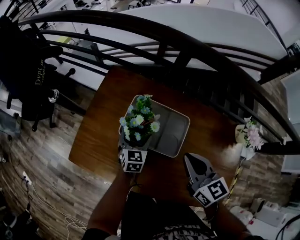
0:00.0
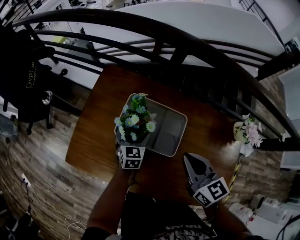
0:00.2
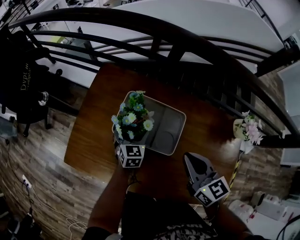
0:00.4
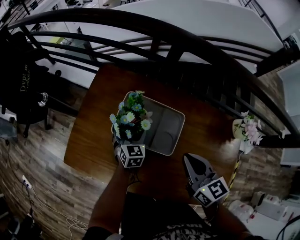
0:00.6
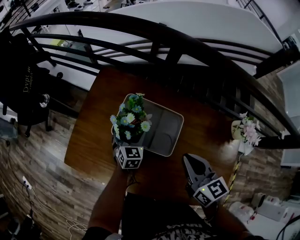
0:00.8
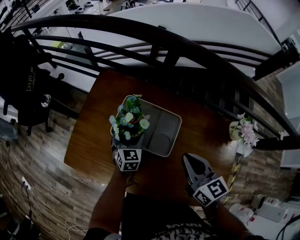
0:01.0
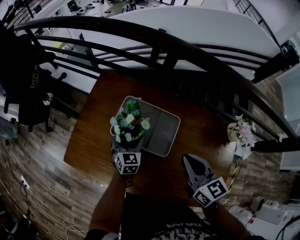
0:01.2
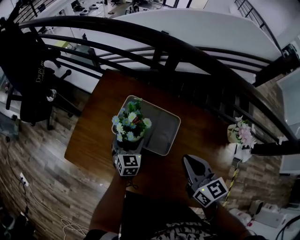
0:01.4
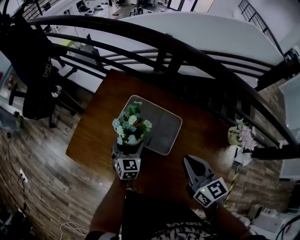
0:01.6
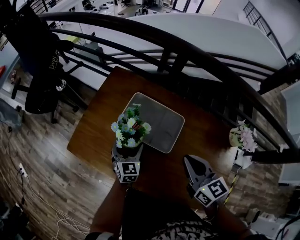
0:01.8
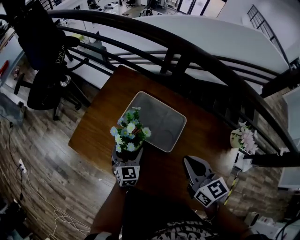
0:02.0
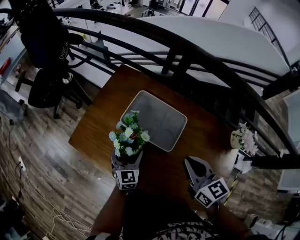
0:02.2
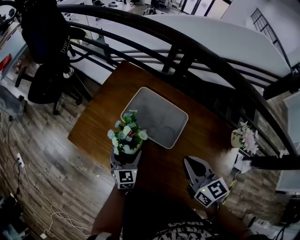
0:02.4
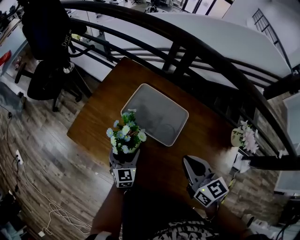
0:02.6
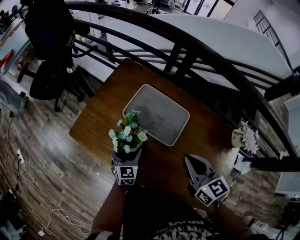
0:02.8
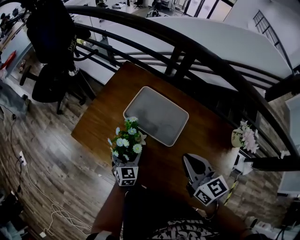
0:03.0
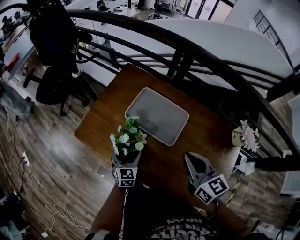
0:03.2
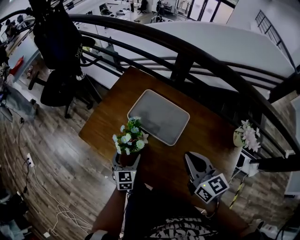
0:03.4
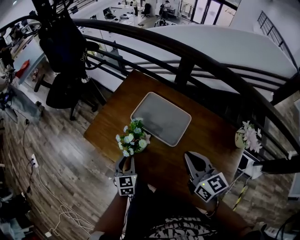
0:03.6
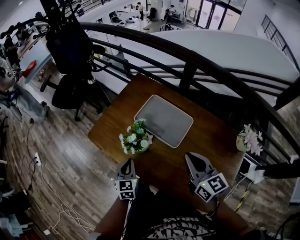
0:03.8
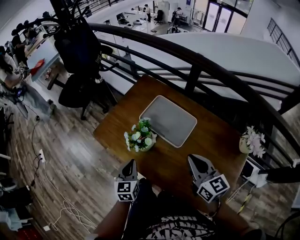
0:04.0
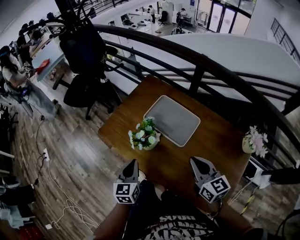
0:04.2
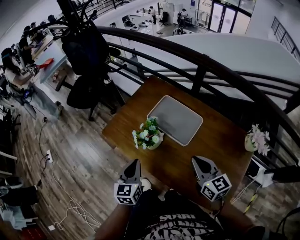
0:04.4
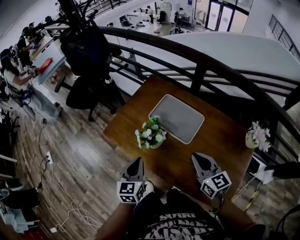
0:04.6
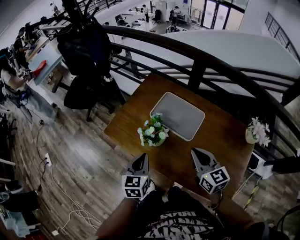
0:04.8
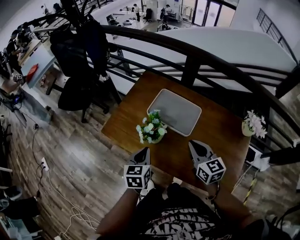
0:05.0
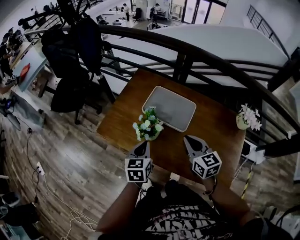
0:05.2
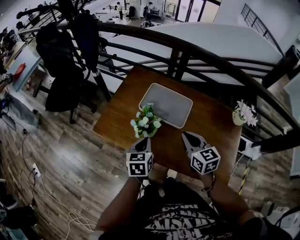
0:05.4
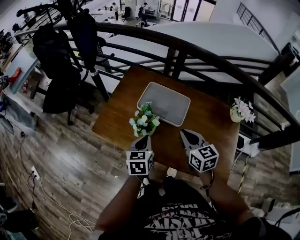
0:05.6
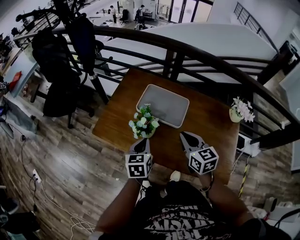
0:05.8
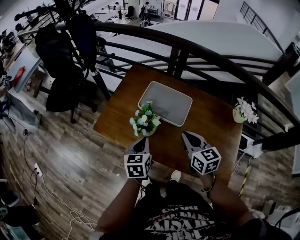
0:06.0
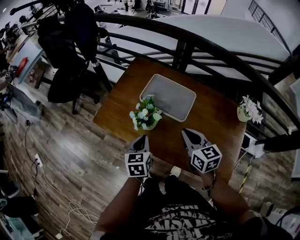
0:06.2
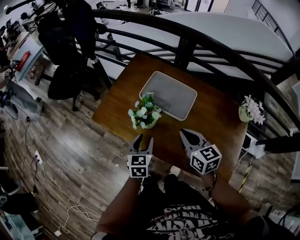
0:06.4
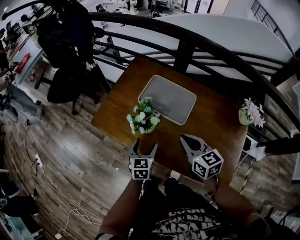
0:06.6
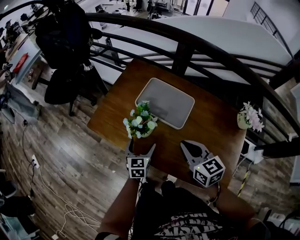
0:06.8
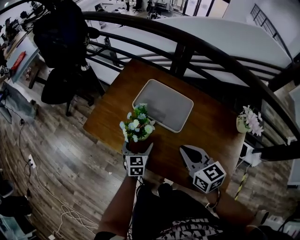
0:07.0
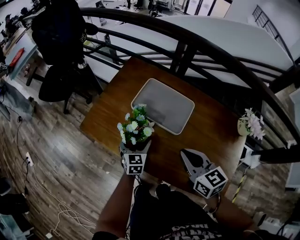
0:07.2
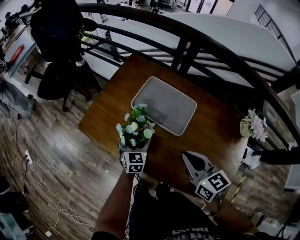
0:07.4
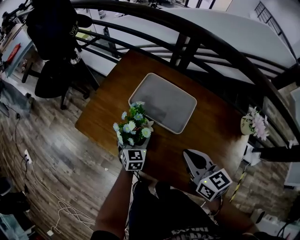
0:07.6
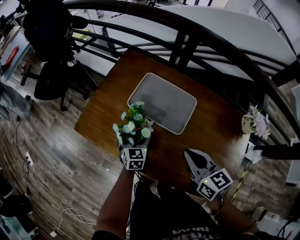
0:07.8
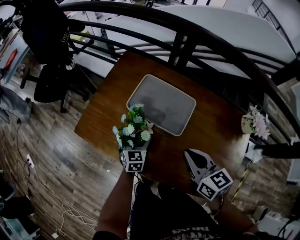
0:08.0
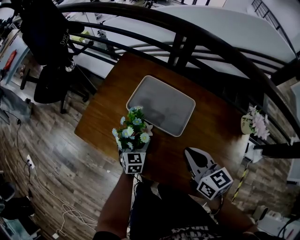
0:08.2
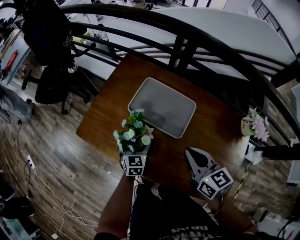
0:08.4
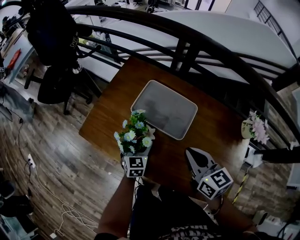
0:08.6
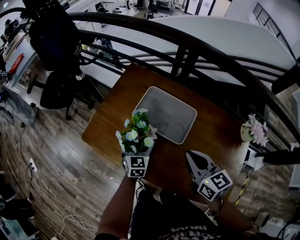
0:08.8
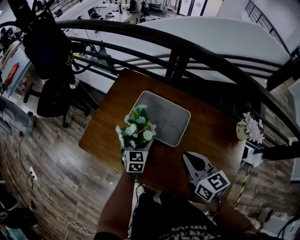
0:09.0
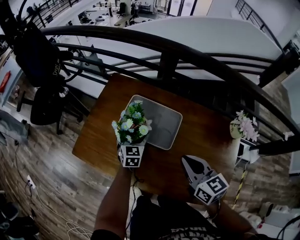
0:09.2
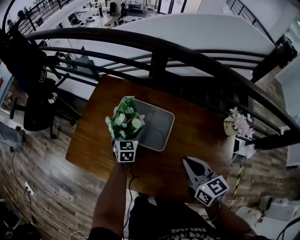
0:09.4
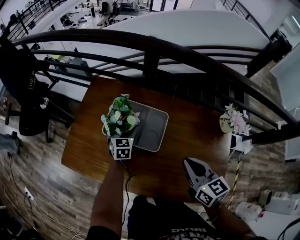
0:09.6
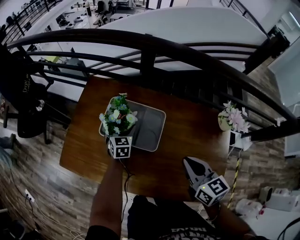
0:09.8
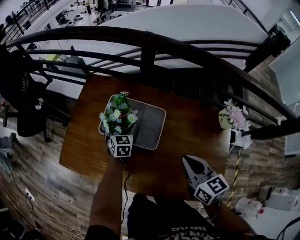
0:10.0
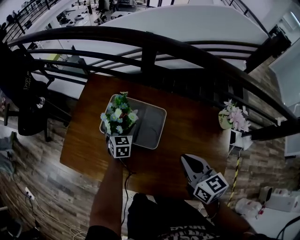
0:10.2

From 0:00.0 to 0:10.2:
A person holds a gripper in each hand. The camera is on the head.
From 0:00.0 to 0:01.4: The grippers move only a little.
From 0:01.4 to 0:03.0: The right gripper ends up some 5 cm from where it was, while the left gripper travels backward and to the left by some 15 cm.
From 0:03.0 to 0:04.4: The right gripper is displaced backward by roughly 5 cm. The left gripper is displaced upward and backward by approximately 20 cm, and closes up.
From 0:04.4 to 0:05.8: The right gripper travels to the left by roughly 5 cm. The left gripper rotates approximately 20 degrees.
From 0:05.8 to 0:07.2: The left gripper moves downward and forward, some 15 cm, and opens its fingers.
From 0:07.2 to 0:08.8: The left gripper ends up some 5 cm from where it was.
From 0:08.8 to 0:10.2: The left gripper heads forward and to the right, covering approximately 15 cm. The right gripper heads to the right, covering about 10 cm.

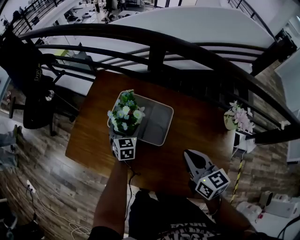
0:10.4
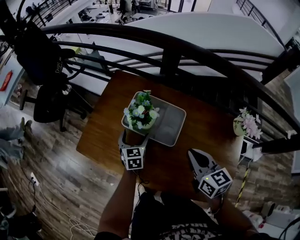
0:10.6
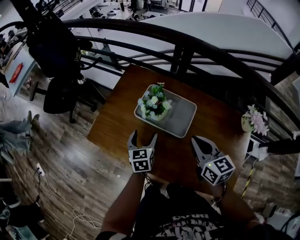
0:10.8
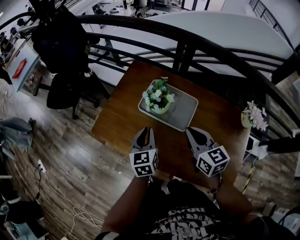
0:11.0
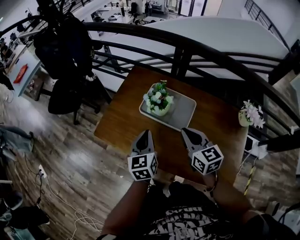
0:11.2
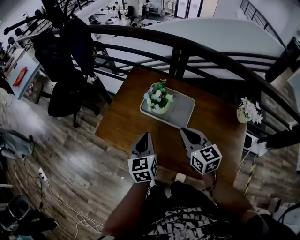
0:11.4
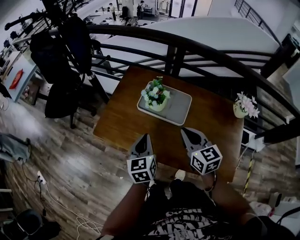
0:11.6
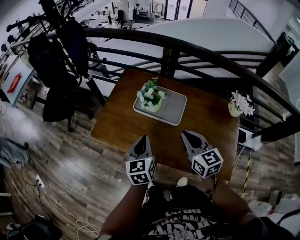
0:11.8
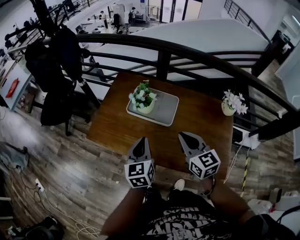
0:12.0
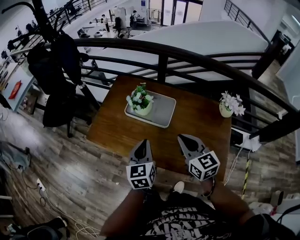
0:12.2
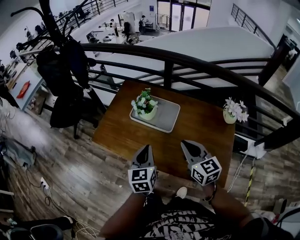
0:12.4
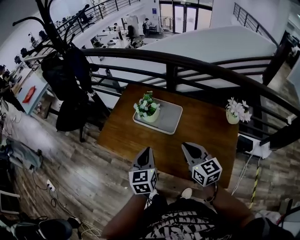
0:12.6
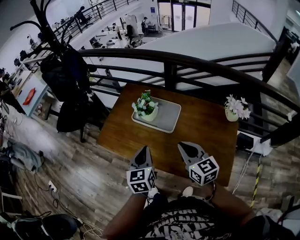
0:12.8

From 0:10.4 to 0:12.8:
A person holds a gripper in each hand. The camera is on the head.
From 0:10.4 to 0:11.6: The left gripper is displaced backward, upward and to the left by approximately 30 cm, turns by about 20 degrees, and closes its fingers. Meanwhile the right gripper moves to the left, approximately 10 cm.
From 0:11.6 to 0:12.8: The left gripper goes approximately 10 cm backward, to the right and upward, while the right gripper moves backward and to the right, roughly 10 cm.

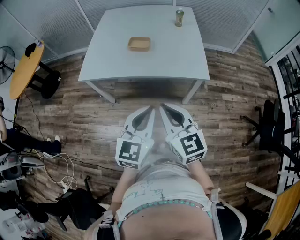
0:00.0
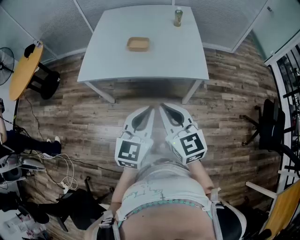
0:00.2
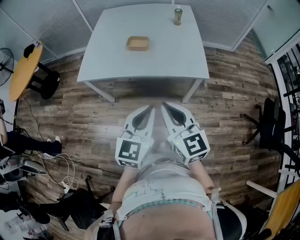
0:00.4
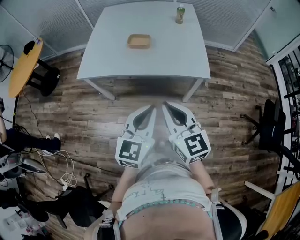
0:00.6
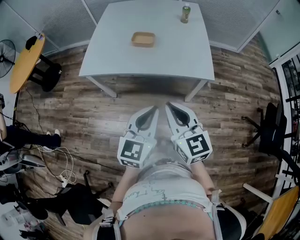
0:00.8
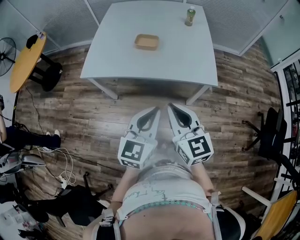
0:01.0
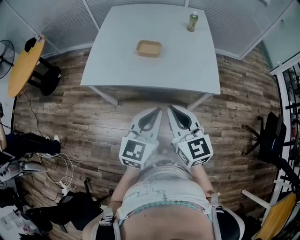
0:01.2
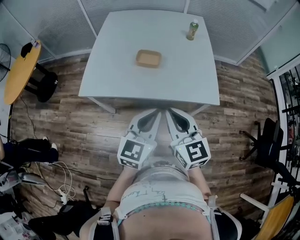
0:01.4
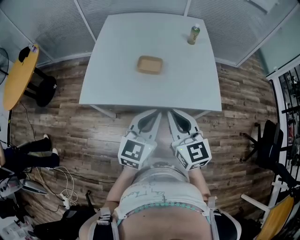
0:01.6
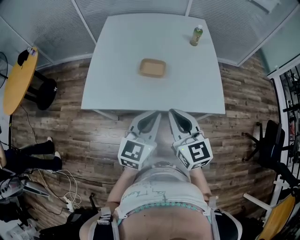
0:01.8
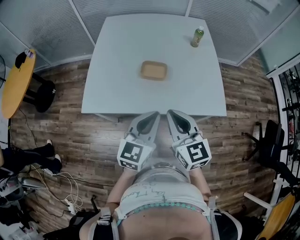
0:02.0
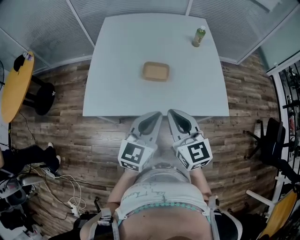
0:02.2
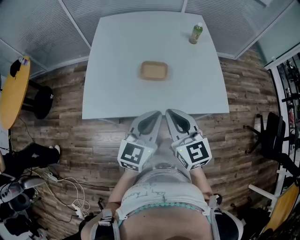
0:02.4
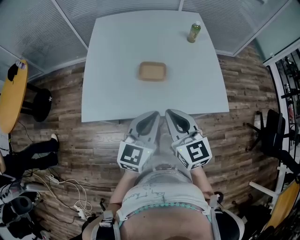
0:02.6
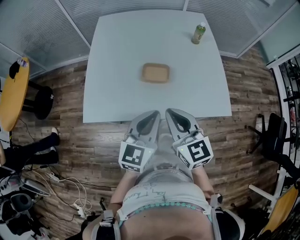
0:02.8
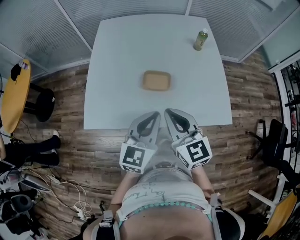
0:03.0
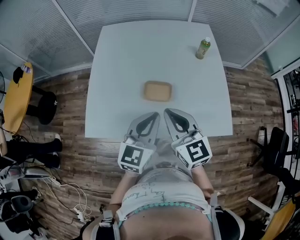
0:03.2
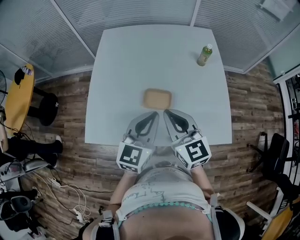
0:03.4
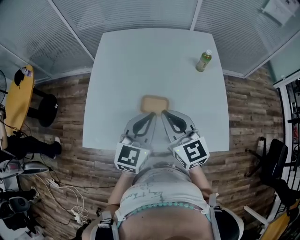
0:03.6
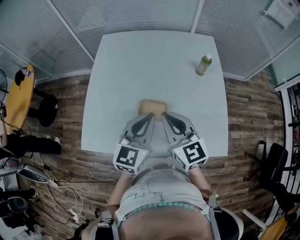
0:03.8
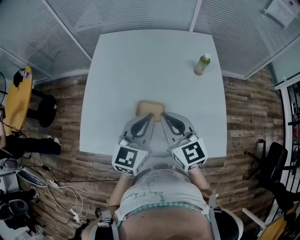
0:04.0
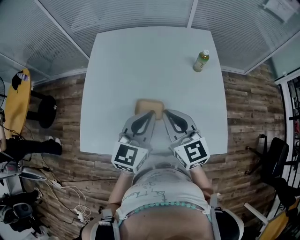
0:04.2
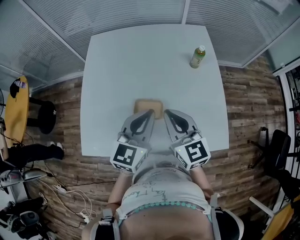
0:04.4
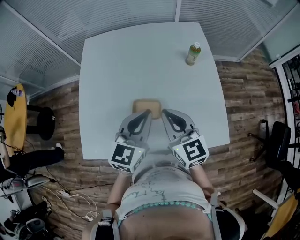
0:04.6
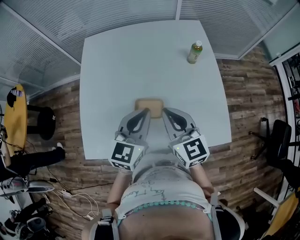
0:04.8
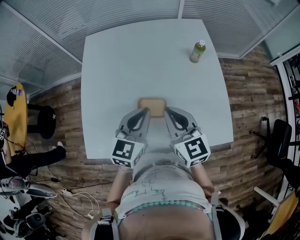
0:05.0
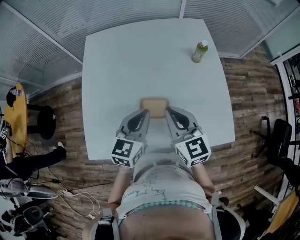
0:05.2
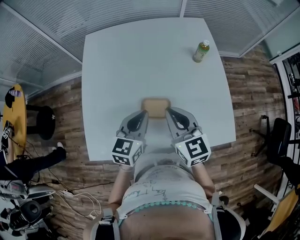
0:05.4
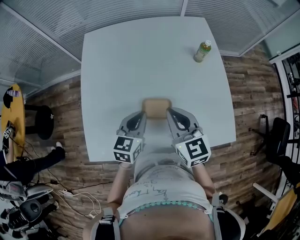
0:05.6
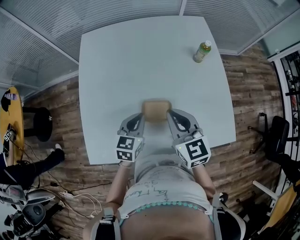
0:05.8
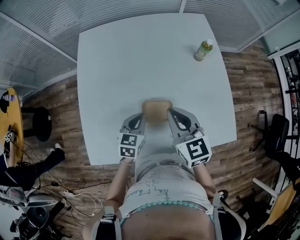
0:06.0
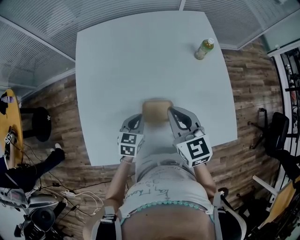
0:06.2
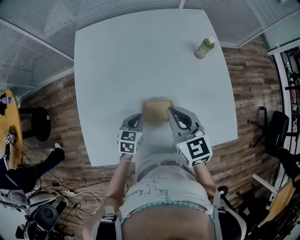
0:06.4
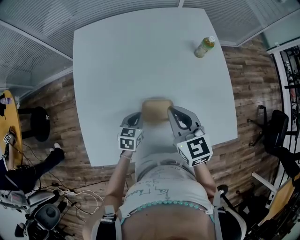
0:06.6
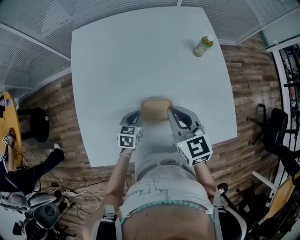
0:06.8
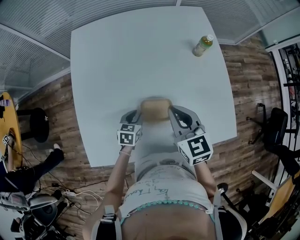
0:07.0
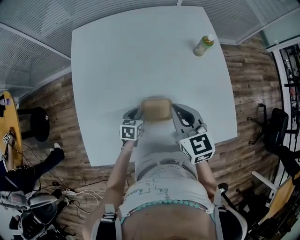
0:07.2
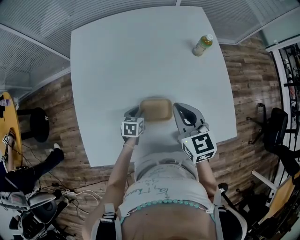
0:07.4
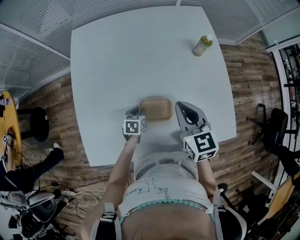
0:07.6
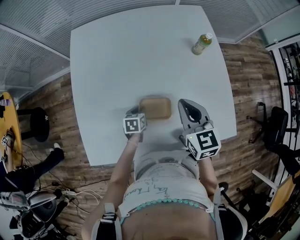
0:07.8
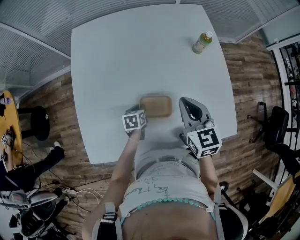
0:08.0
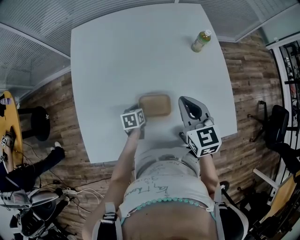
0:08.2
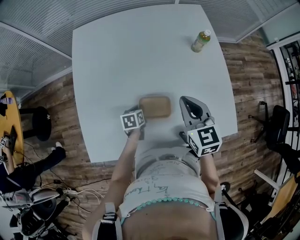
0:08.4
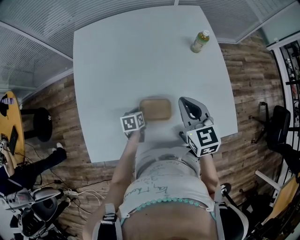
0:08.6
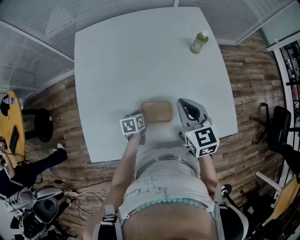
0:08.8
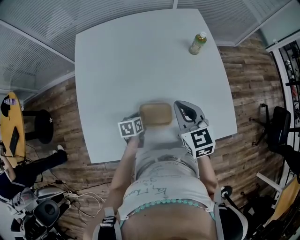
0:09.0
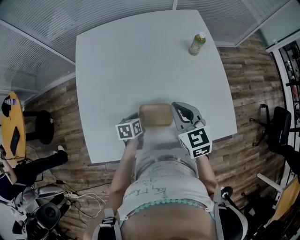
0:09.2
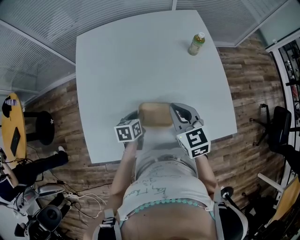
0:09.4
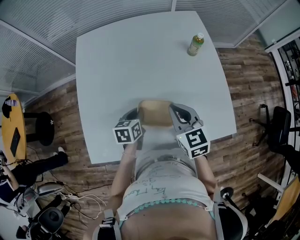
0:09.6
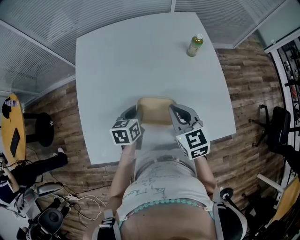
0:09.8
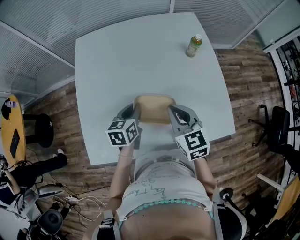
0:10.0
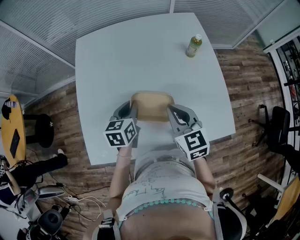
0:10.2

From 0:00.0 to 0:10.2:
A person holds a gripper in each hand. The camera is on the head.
From 0:00.0 to 0:01.4: Both grippers move forward, about 15 cm.
From 0:01.4 to 0:03.0: The grippers both shift forward and to the left by approximately 20 cm.
From 0:03.0 to 0:04.4: The right gripper heads forward and to the right, covering some 20 cm; the left gripper shifts approximately 15 cm forward.
From 0:04.4 to 0:05.8: The right gripper travels to the left by roughly 5 cm; the left gripper is displaced downward and to the left by about 20 cm, and swivels roughly 20 degrees.
From 0:05.8 to 0:07.2: The left gripper shifts roughly 15 cm downward, changes its angle by approximately 20 degrees, and opens its fingers.
From 0:07.2 to 0:08.8: The left gripper closes up.
From 0:08.8 to 0:10.2: The left gripper heads upward, covering approximately 20 cm, and swivels some 30 degrees.

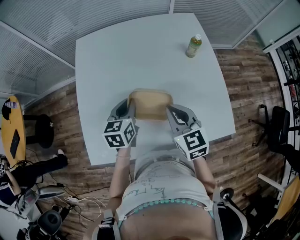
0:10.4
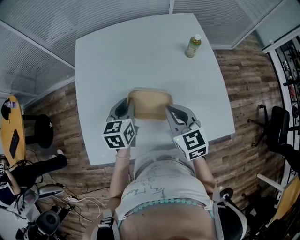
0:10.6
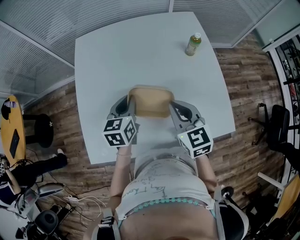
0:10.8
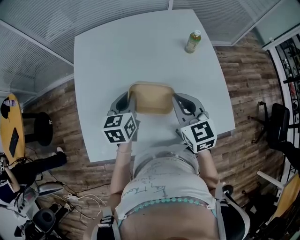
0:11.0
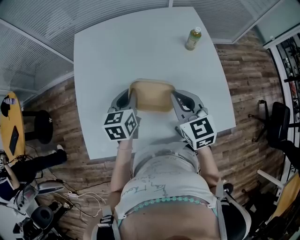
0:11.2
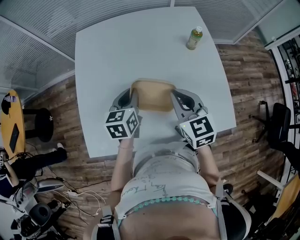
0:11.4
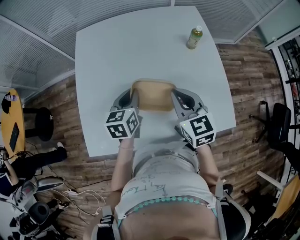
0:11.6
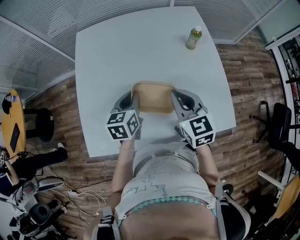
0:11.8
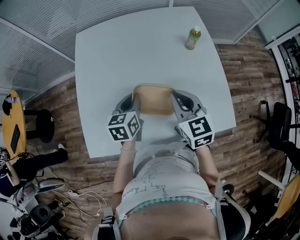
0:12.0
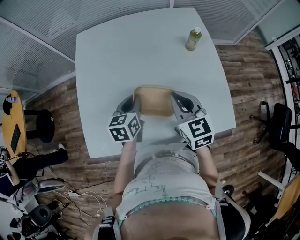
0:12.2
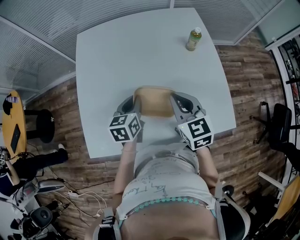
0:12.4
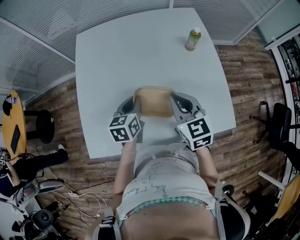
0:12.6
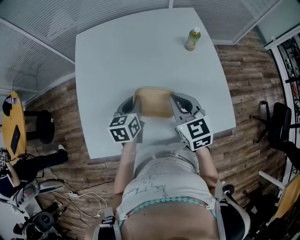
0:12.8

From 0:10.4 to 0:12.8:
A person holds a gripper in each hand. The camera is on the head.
From 0:10.4 to 0:12.8: The grippers make only small movements.
